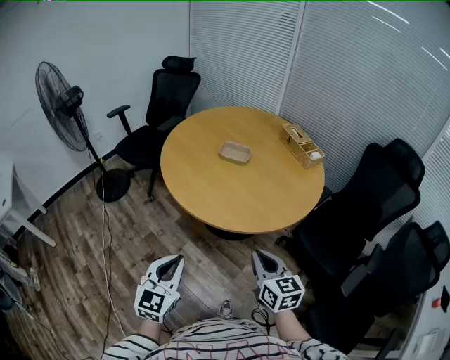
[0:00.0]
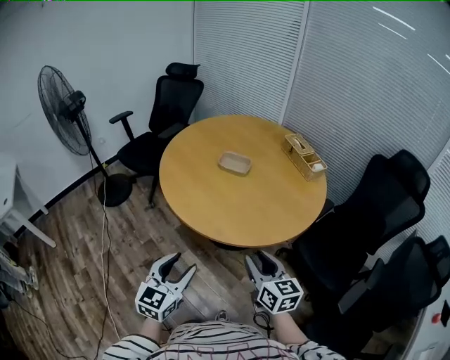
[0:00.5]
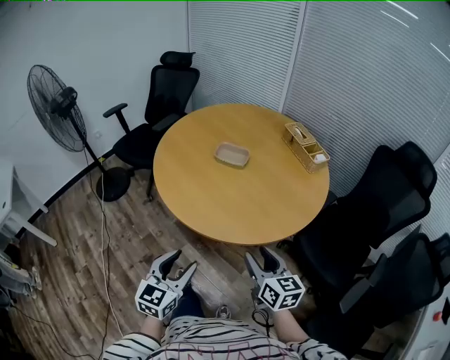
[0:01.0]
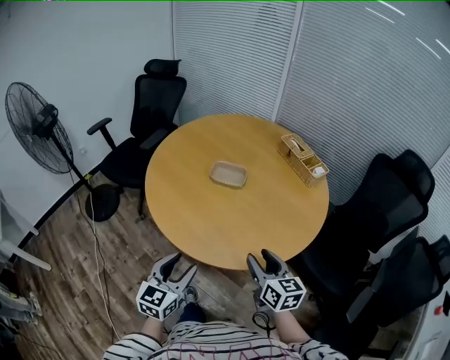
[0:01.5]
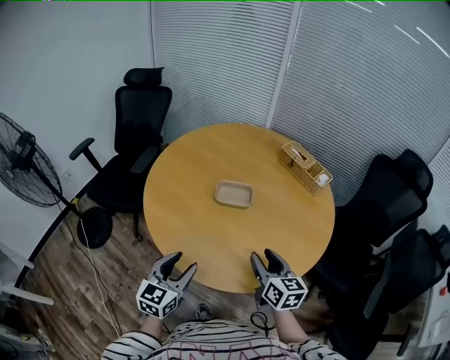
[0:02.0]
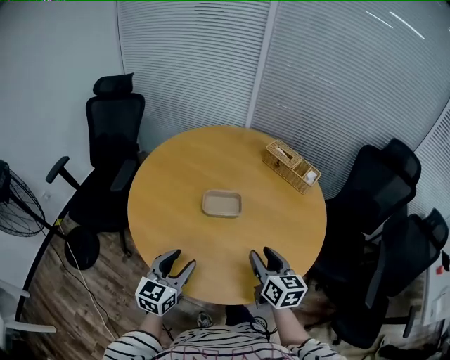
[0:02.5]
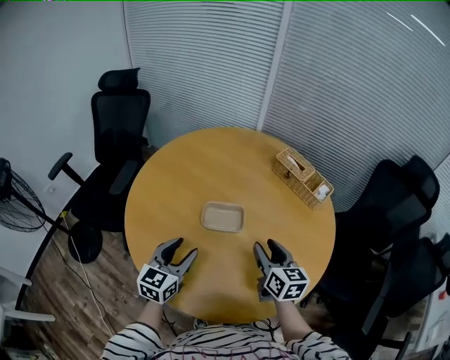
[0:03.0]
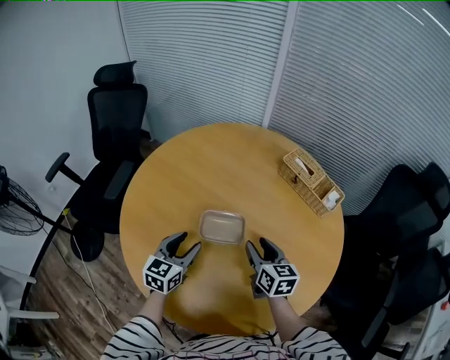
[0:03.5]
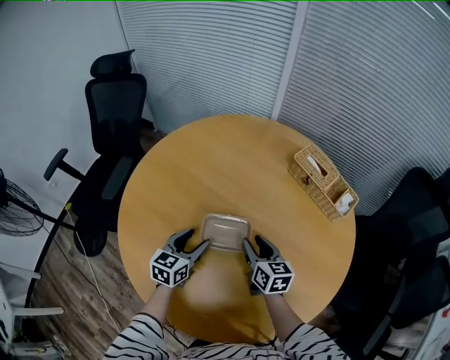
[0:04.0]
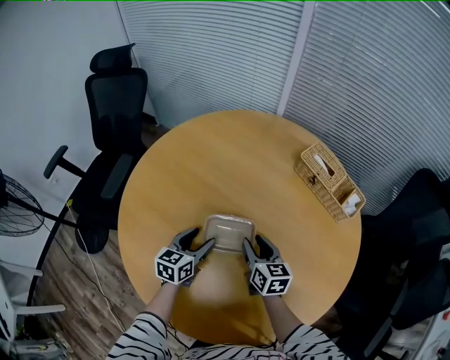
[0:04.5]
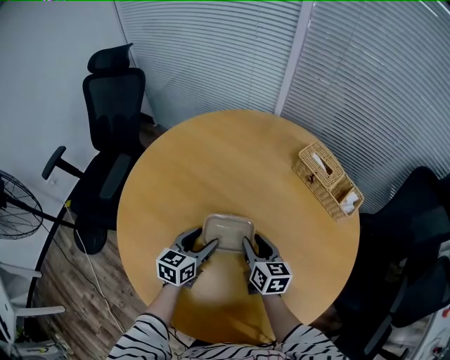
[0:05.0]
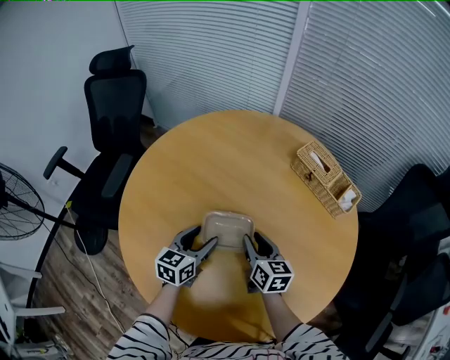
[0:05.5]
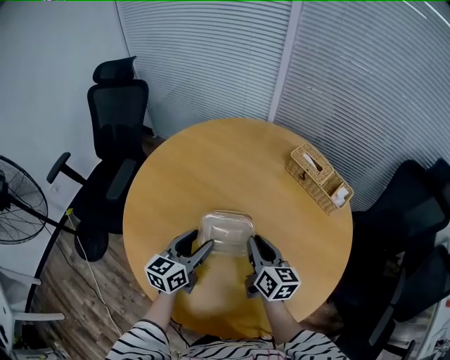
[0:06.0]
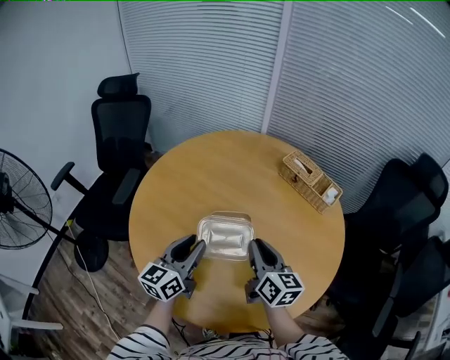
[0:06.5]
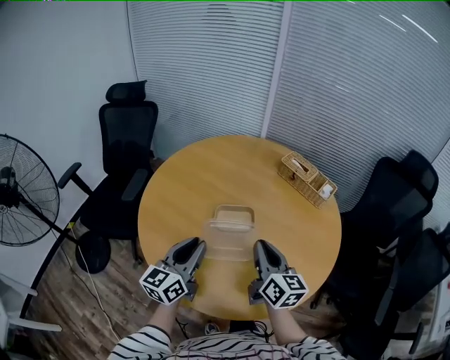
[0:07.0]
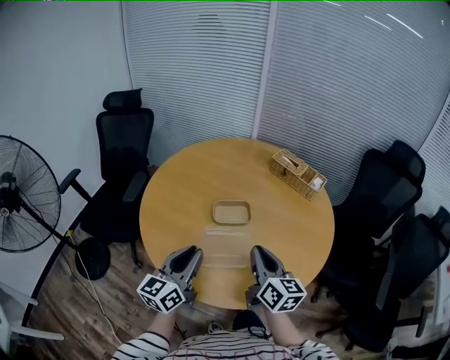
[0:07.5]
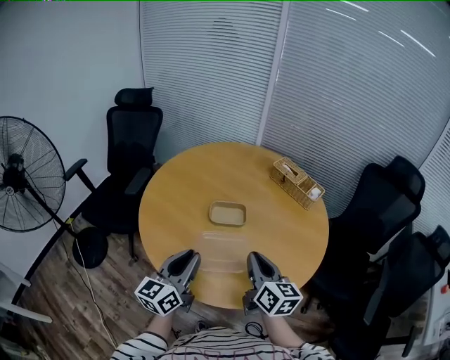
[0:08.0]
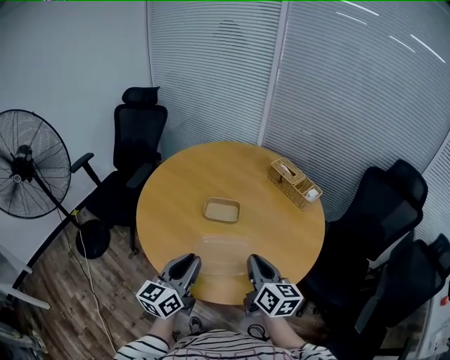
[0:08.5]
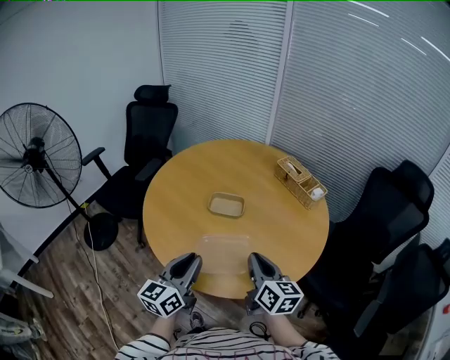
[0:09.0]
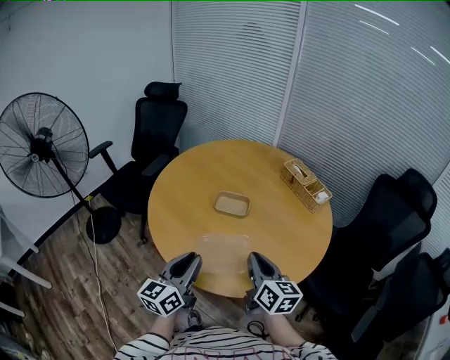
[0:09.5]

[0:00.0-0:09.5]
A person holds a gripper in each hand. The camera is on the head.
0:00.0 to 0:02.0: Both grippers move forward, roughly 35 cm. The right gripper opens, while the left gripper changes its angle by about 20 degrees, and opens.
0:02.0 to 0:04.0: The left gripper goes roughly 35 cm forward; the right gripper is displaced forward and downward by approximately 35 cm.
0:04.0 to 0:05.5: The grippers make only small movements.
0:05.5 to 0:07.5: The grippers both shift backward and upward by about 35 cm. The left gripper swivels some 20 degrees, and closes up; the right gripper closes up.
0:07.5 to 0:09.5: The left gripper heads backward and to the right, covering about 15 cm. Meanwhile the right gripper shifts approximately 10 cm to the right and backward.

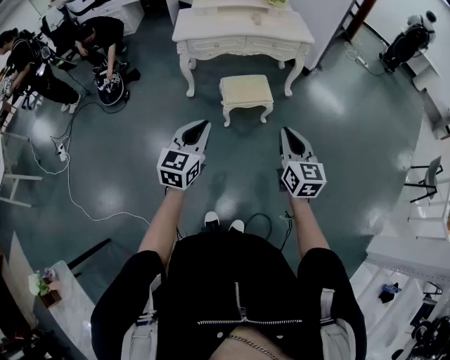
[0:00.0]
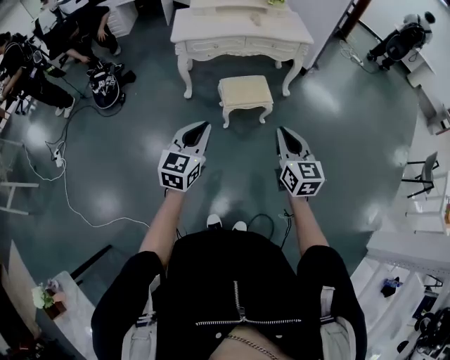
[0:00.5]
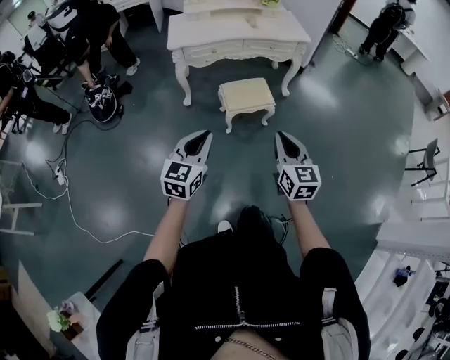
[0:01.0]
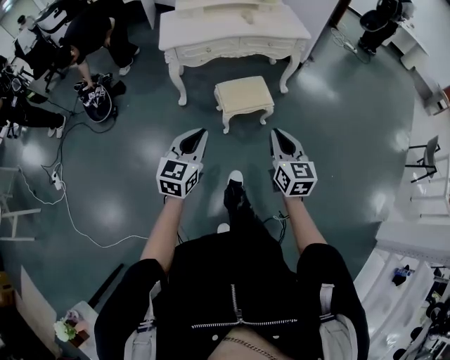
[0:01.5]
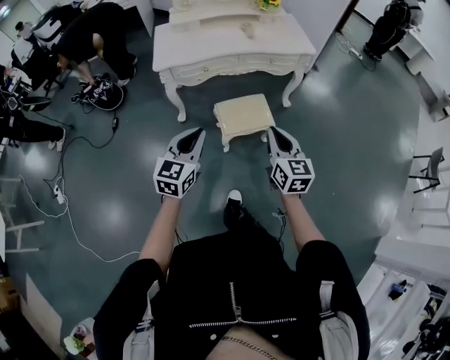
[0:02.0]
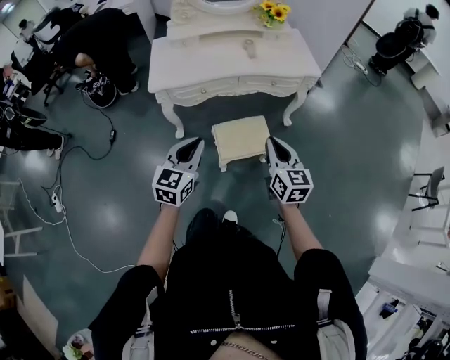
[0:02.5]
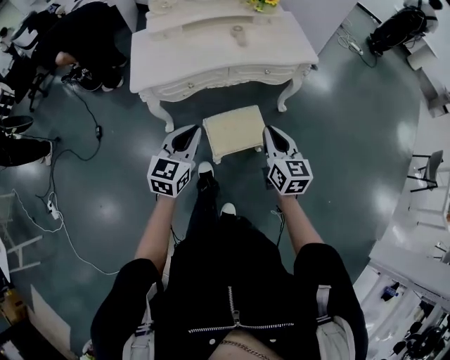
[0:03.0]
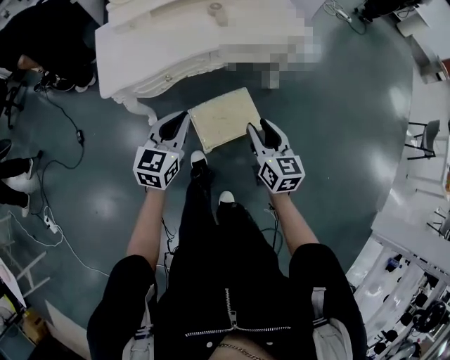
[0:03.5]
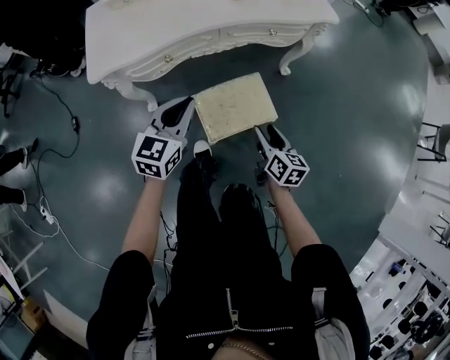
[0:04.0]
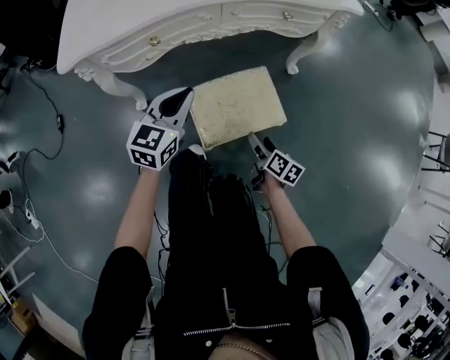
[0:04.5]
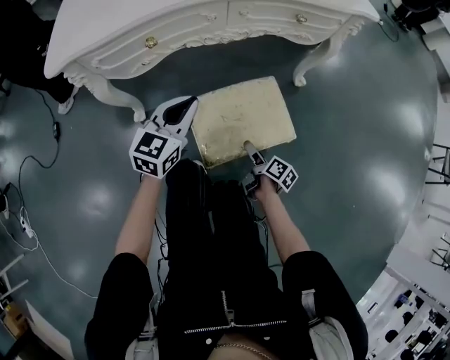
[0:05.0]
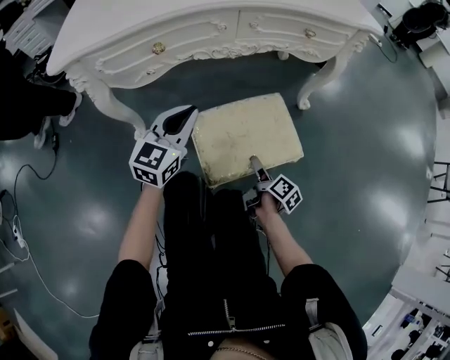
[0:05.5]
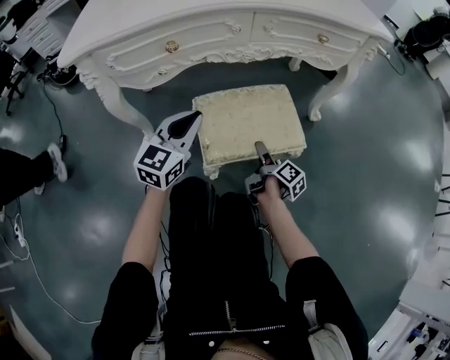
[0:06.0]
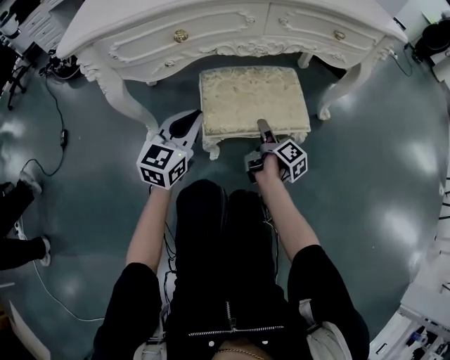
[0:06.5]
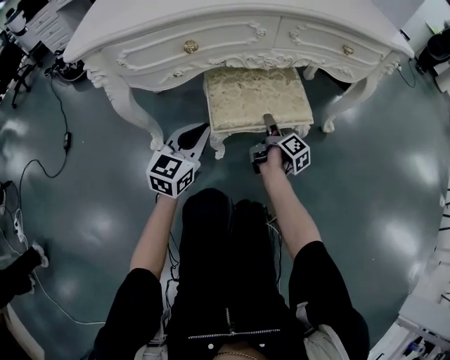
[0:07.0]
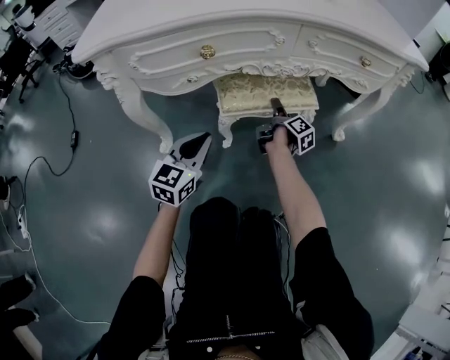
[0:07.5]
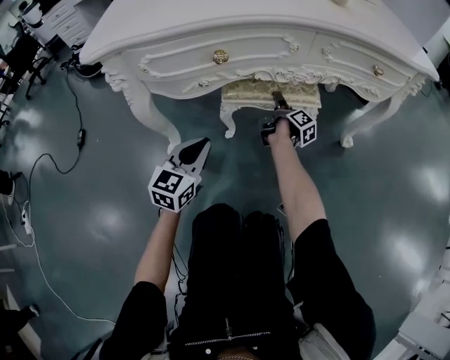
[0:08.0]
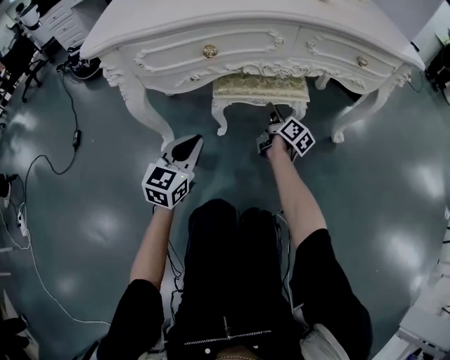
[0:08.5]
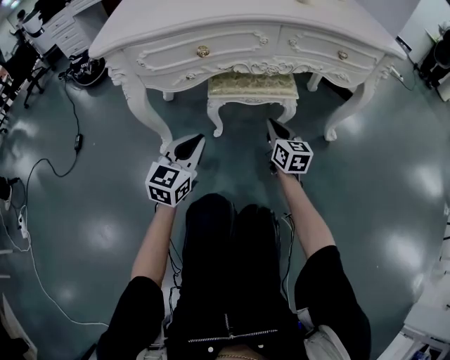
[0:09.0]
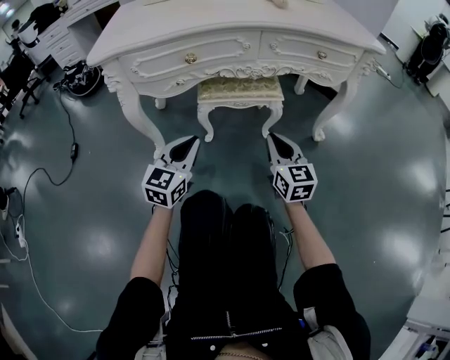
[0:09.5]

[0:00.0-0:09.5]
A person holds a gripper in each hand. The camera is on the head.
0:00.0 to 0:02.0: The two grippers go about 25 cm forward.
0:02.0 to 0:04.0: The left gripper heads forward and downward, covering some 40 cm, while the right gripper shifts roughly 40 cm downward and forward, rotates some 30 degrees, and opens up.
0:04.0 to 0:05.5: The two grippers go about 30 cm downward. The right gripper rotates approximately 40 degrees, and opens up.
0:05.5 to 0:07.5: The left gripper is displaced downward and to the left by roughly 15 cm. The right gripper heads forward and to the left, covering some 30 cm.
0:07.5 to 0:09.5: The right gripper is displaced backward and upward by about 25 cm, rolls counterclockwise, seen from behind, by some 80 degrees, and closes up. The left gripper shifts roughly 10 cm backward and upward.

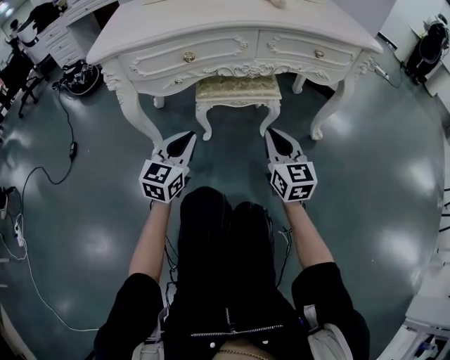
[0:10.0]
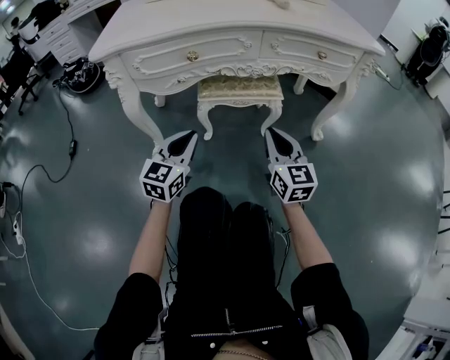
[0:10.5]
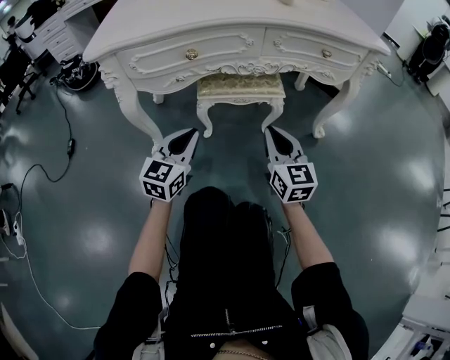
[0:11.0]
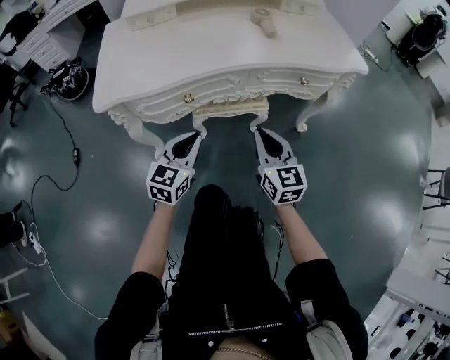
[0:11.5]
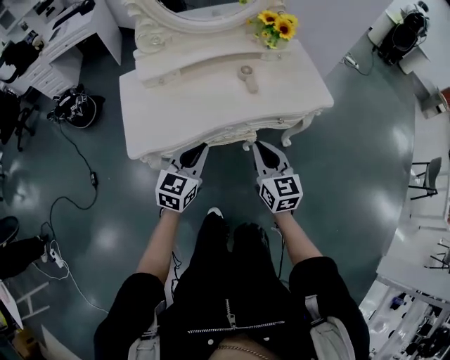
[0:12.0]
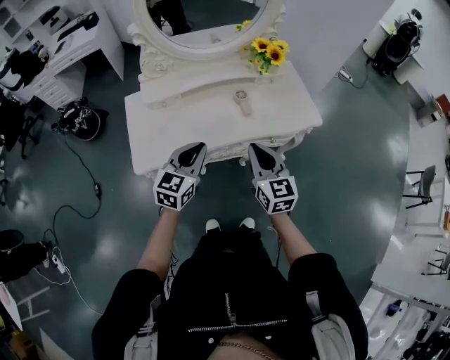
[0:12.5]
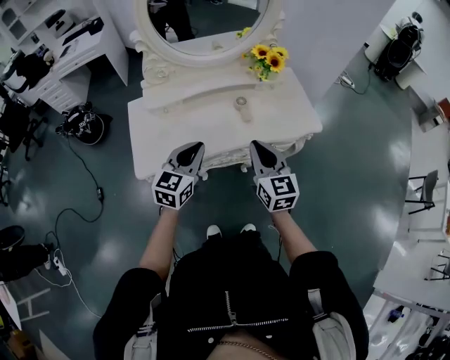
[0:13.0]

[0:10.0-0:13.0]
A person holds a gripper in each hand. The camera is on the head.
0:10.0 to 0:11.5: The two grippers go approximately 15 cm upward.
0:11.5 to 0:13.0: The two grippers go roughly 35 cm upward.

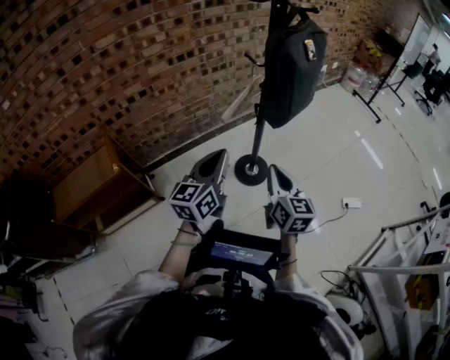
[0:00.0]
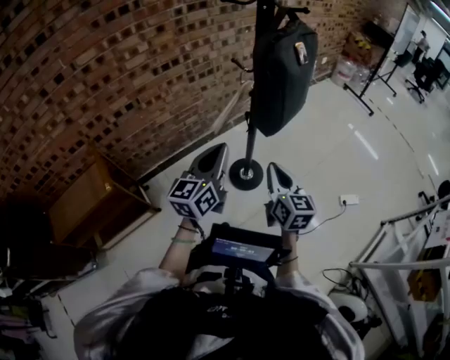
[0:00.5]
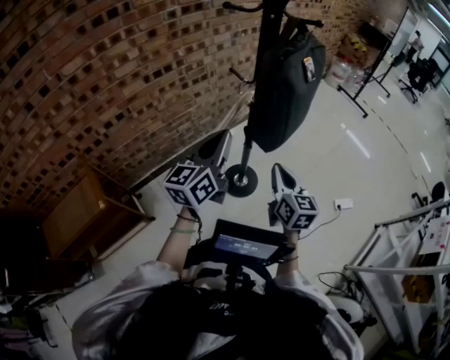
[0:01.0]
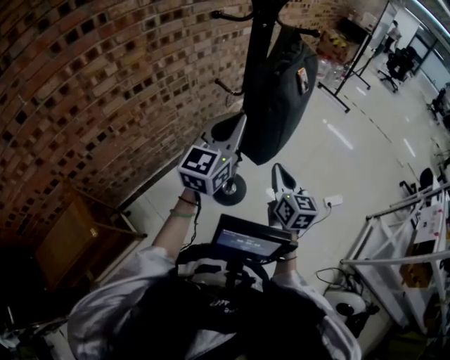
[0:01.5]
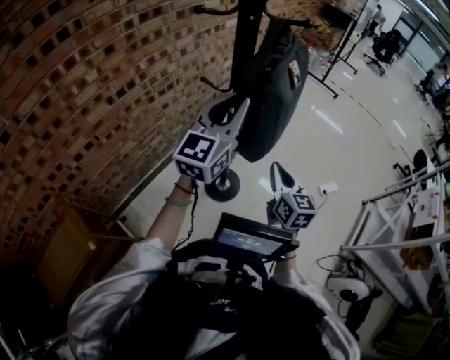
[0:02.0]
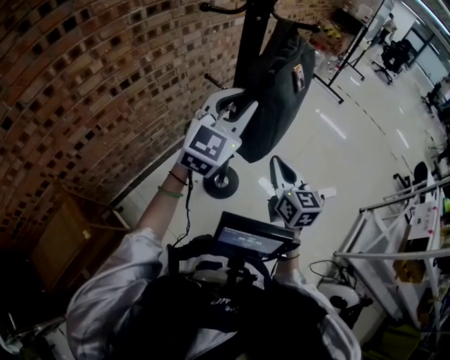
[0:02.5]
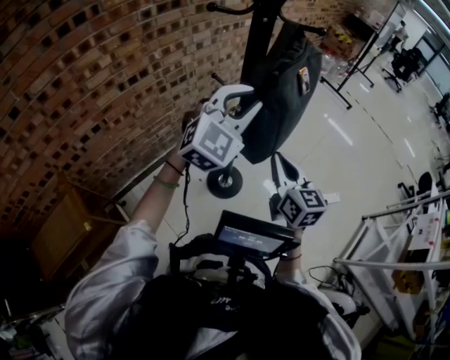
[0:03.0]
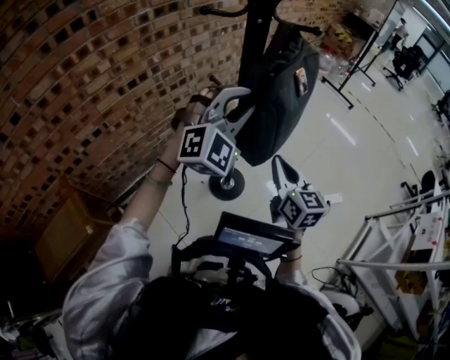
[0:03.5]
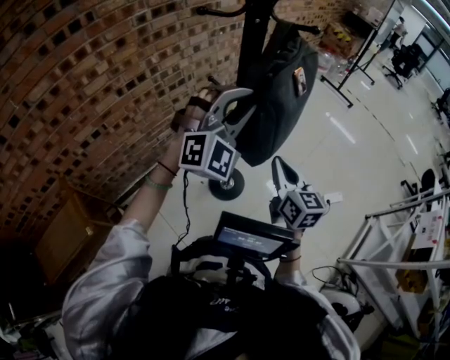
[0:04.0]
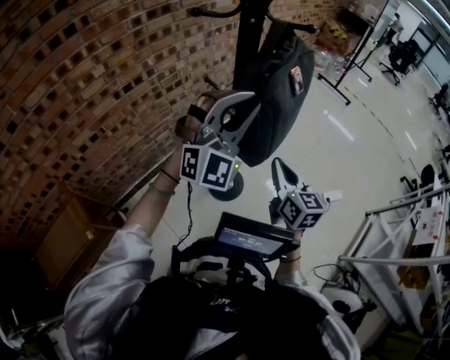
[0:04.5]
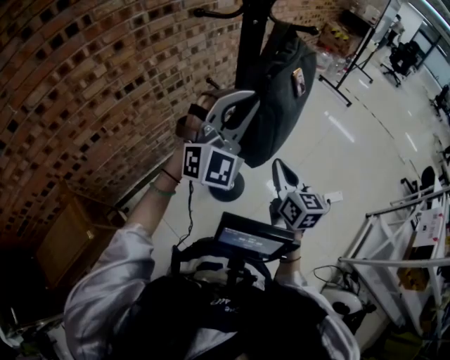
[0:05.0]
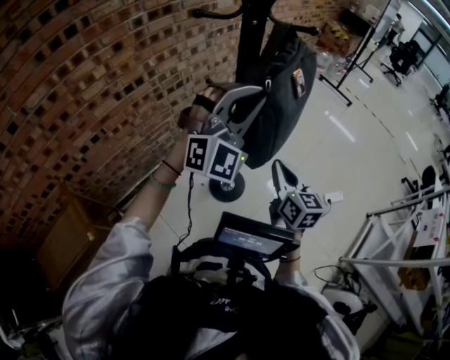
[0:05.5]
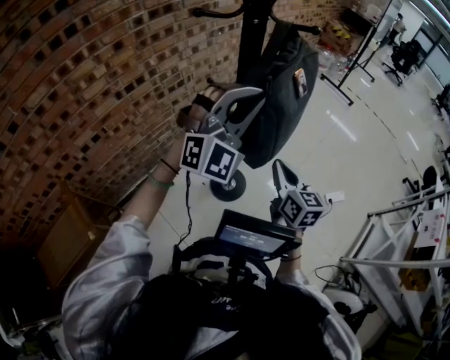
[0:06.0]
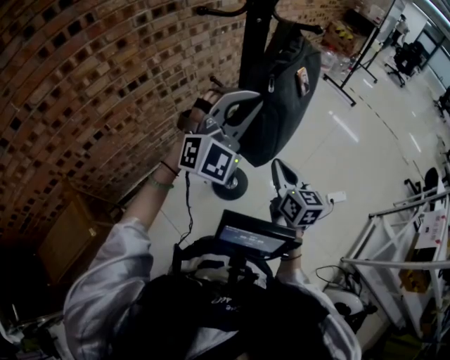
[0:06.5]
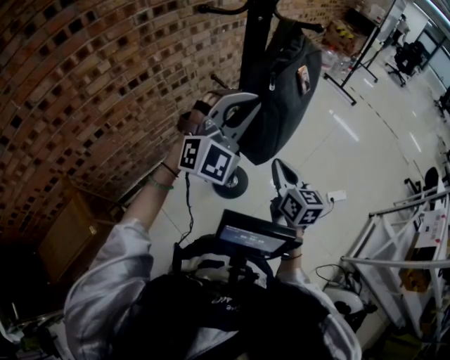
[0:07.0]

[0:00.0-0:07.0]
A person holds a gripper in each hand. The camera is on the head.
0:00.0 to 0:02.0: The right gripper is displaced forward by roughly 20 cm. The left gripper is displaced forward and upward by approximately 30 cm, and swivels about 30 degrees.
0:02.0 to 0:03.5: The left gripper rotates around the line of its fingers by roughly 60 degrees, clockwise from behind. Meanwhile the right gripper changes place by approximately 5 cm.
0:03.5 to 0:07.0: The grippers make only small movements.
